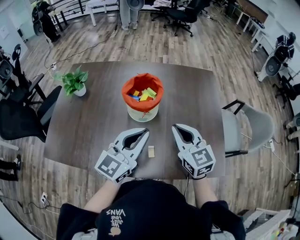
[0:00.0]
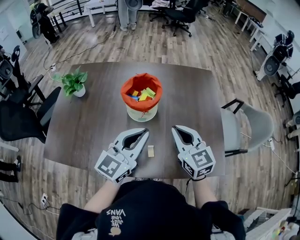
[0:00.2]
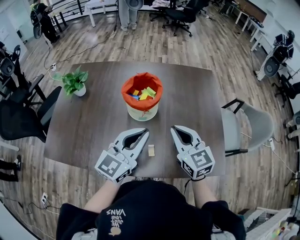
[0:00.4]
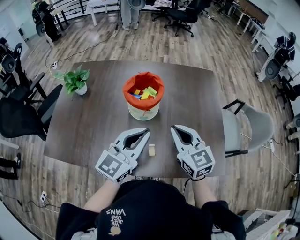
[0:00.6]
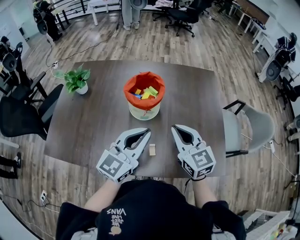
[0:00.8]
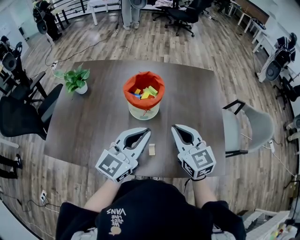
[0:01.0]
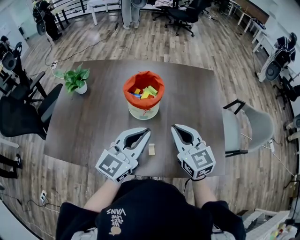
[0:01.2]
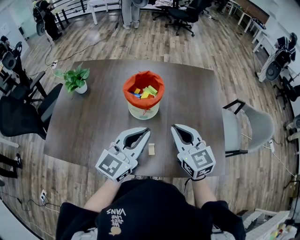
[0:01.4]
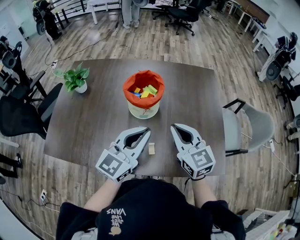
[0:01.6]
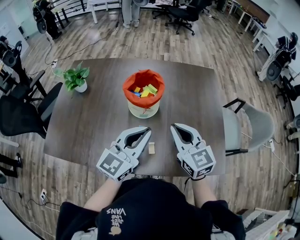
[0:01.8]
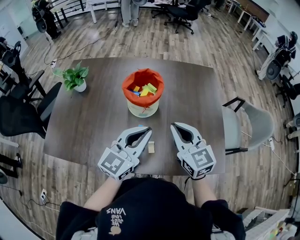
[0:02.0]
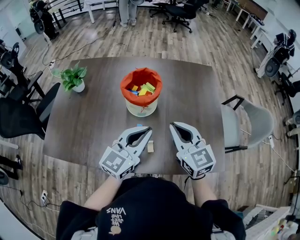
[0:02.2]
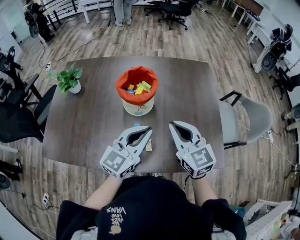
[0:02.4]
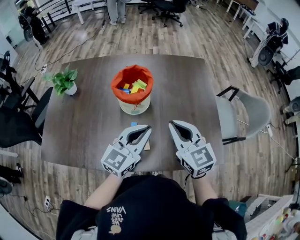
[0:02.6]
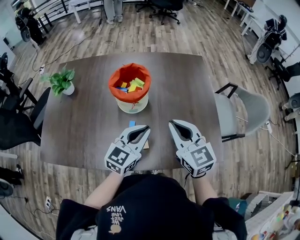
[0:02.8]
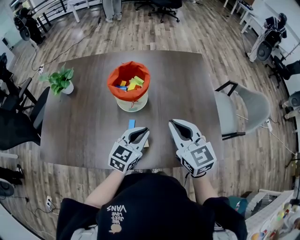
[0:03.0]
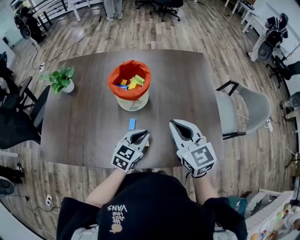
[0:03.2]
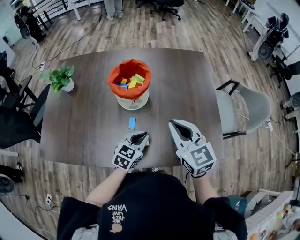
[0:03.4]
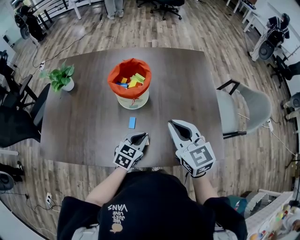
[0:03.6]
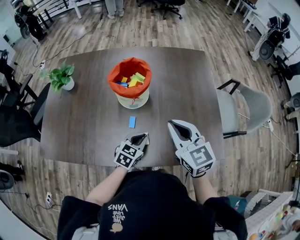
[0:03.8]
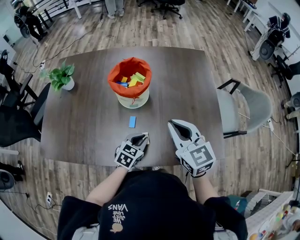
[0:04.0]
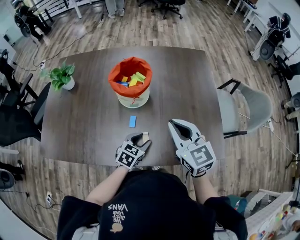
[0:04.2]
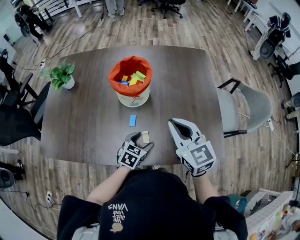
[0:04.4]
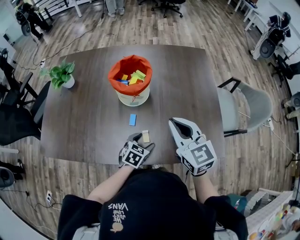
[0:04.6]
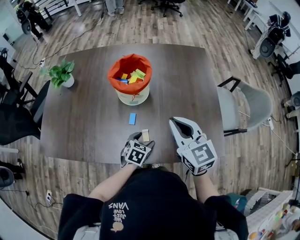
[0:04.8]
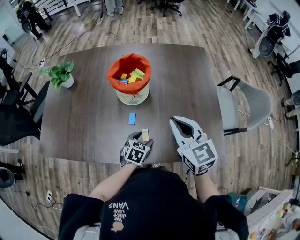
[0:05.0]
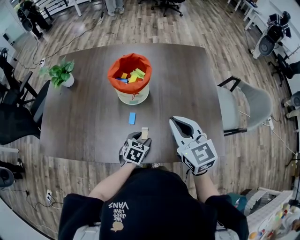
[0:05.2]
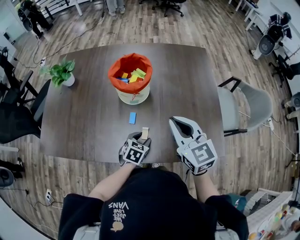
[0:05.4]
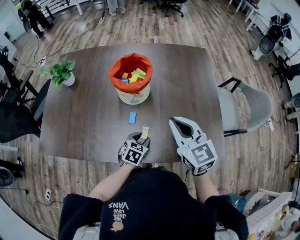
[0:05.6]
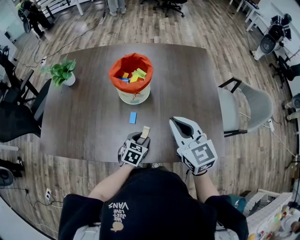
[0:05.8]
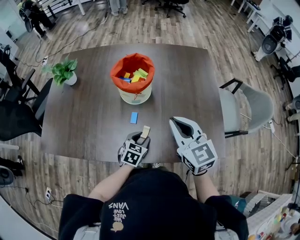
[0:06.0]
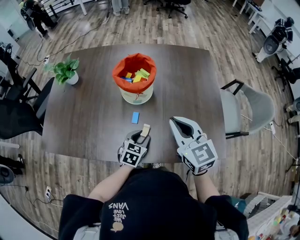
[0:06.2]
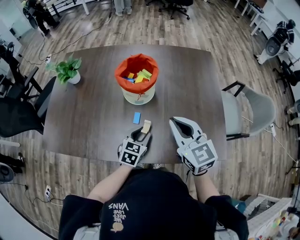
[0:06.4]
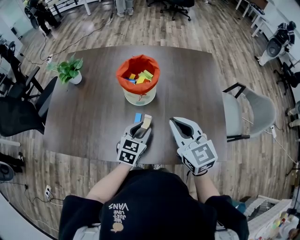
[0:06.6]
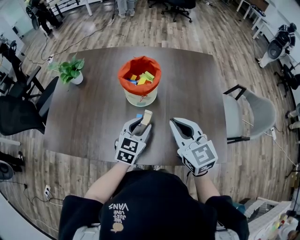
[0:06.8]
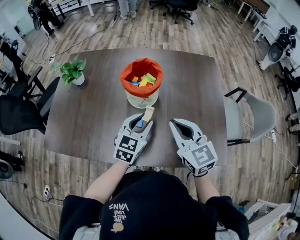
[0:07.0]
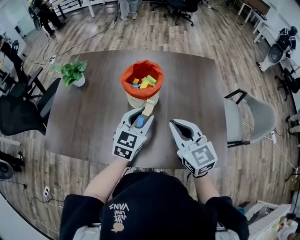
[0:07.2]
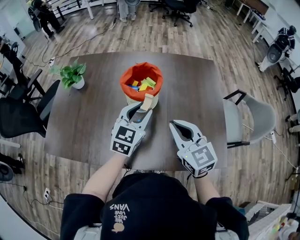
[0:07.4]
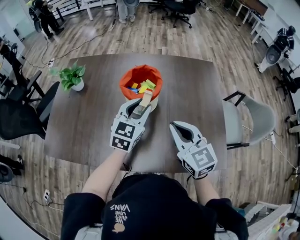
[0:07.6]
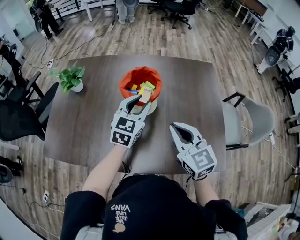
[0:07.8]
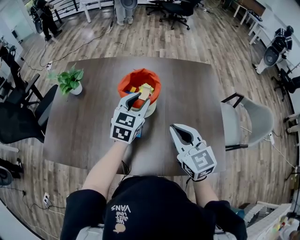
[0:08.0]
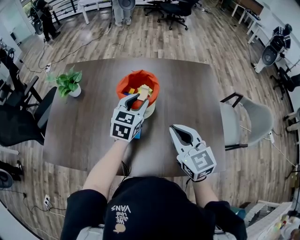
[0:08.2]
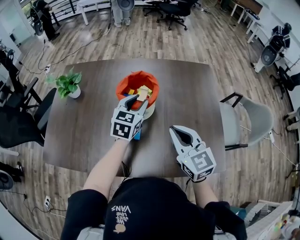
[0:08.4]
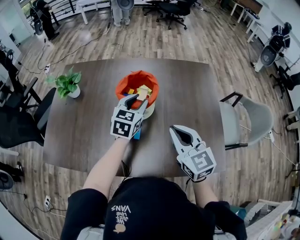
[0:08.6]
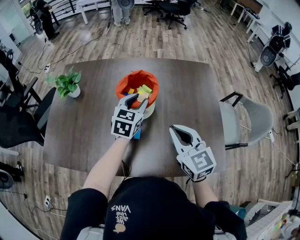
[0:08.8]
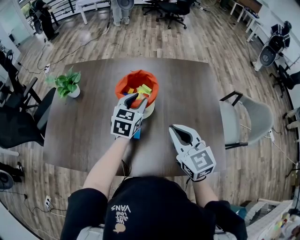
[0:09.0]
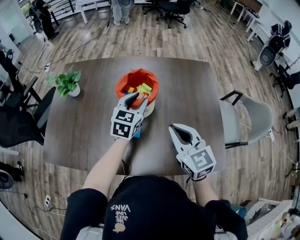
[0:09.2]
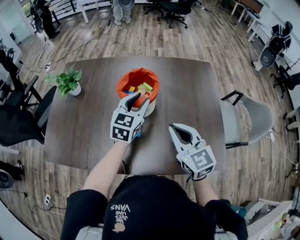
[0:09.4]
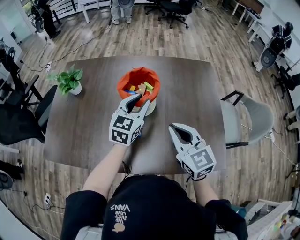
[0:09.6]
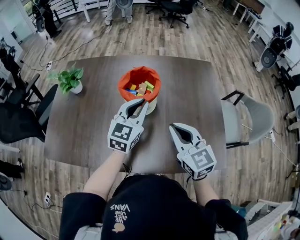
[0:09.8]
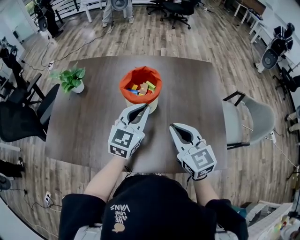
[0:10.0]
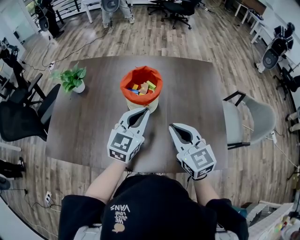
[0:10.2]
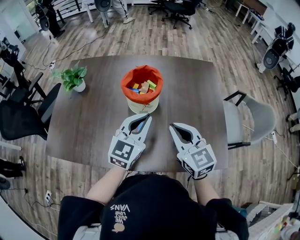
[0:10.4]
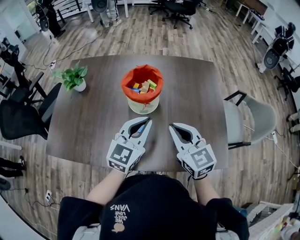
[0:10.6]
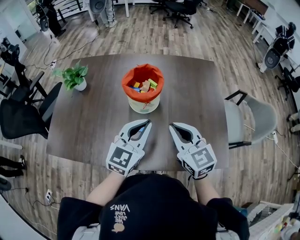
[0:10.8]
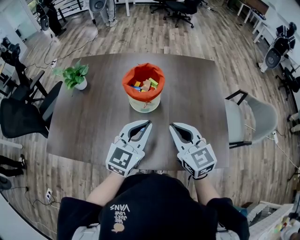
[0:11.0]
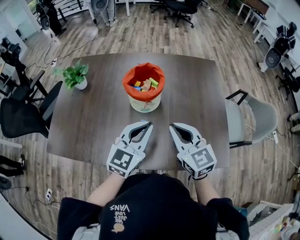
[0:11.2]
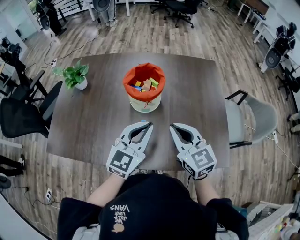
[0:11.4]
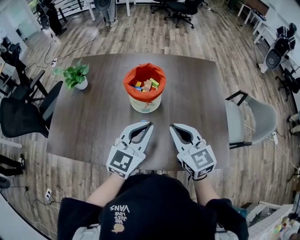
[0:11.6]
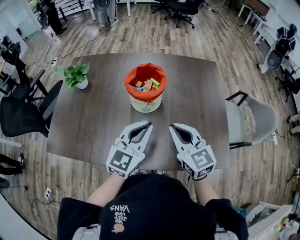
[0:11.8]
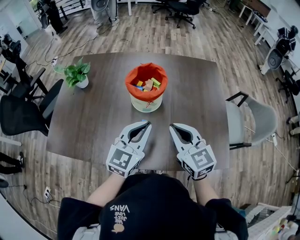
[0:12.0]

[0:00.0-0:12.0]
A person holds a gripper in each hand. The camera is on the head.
0:00.0 to 0:01.6: There are only small adjustments of the grippers.
0:01.6 to 0:03.0: The left gripper moves downward, some 15 cm, and rotates about 20 degrees.
0:03.0 to 0:04.4: The left gripper heads downward, covering approximately 15 cm, turns by some 30 degrees, and opens its fingers.
0:04.4 to 0:06.0: The left gripper closes up.
0:06.0 to 0:07.6: The left gripper is displaced upward and forward by about 25 cm, and changes its angle by about 30 degrees.
0:07.6 to 0:09.0: The left gripper heads forward, covering about 5 cm.
0:09.0 to 0:10.4: The left gripper goes approximately 15 cm backward and upward, and closes its fingers.
0:10.4 to 0:12.0: The grippers move only a little.

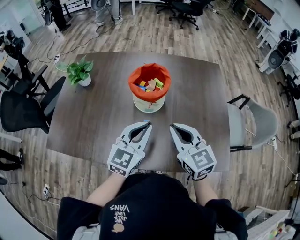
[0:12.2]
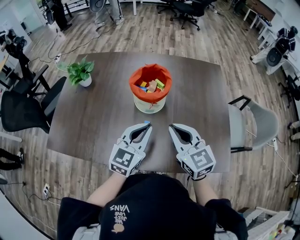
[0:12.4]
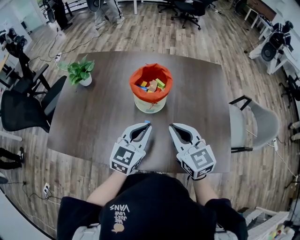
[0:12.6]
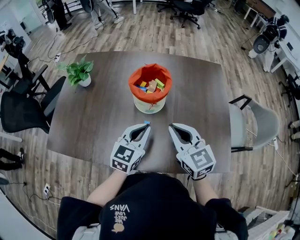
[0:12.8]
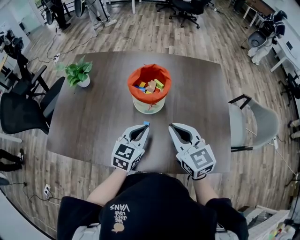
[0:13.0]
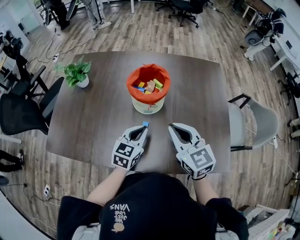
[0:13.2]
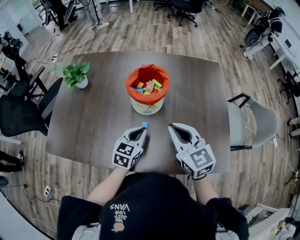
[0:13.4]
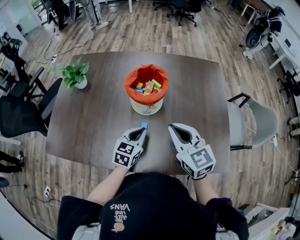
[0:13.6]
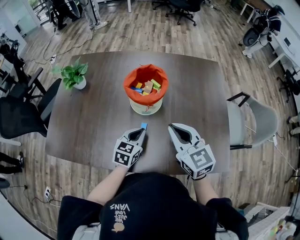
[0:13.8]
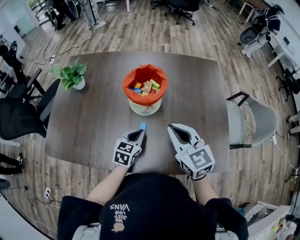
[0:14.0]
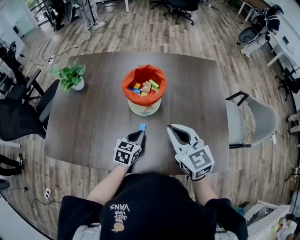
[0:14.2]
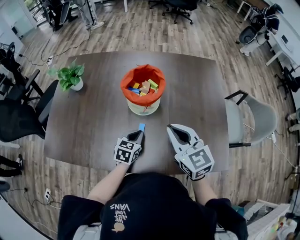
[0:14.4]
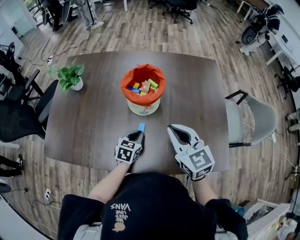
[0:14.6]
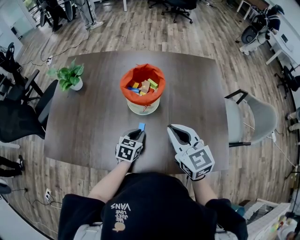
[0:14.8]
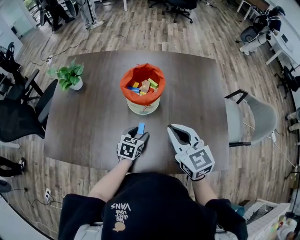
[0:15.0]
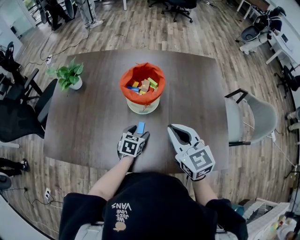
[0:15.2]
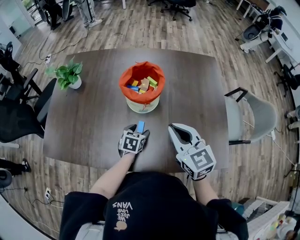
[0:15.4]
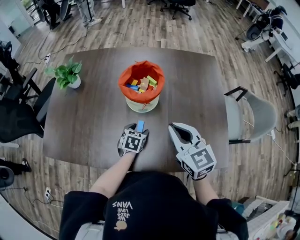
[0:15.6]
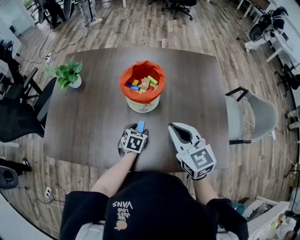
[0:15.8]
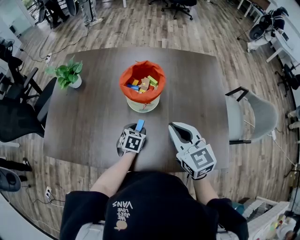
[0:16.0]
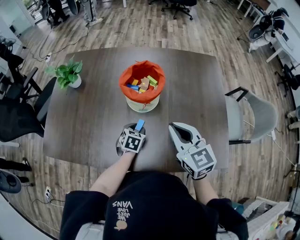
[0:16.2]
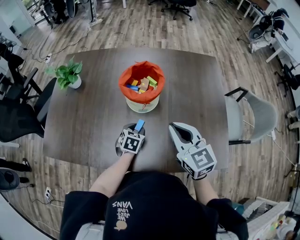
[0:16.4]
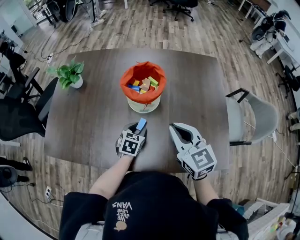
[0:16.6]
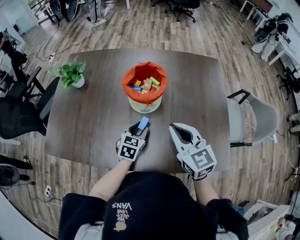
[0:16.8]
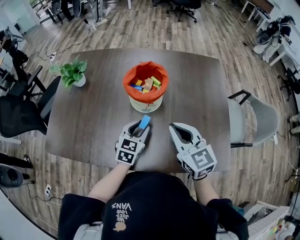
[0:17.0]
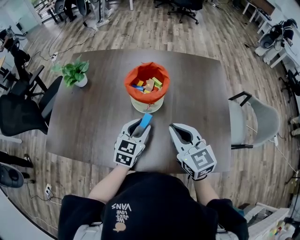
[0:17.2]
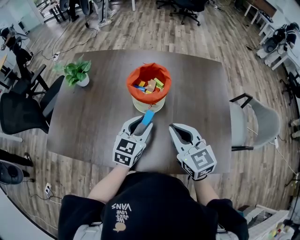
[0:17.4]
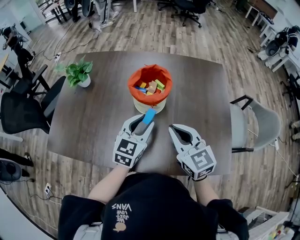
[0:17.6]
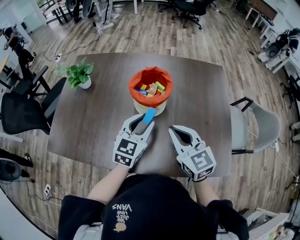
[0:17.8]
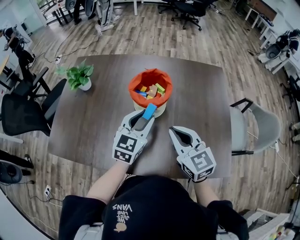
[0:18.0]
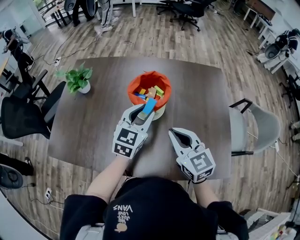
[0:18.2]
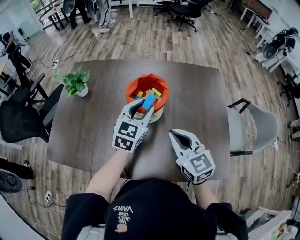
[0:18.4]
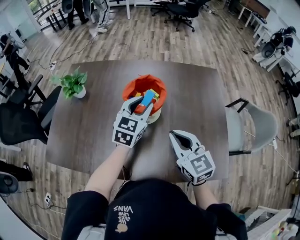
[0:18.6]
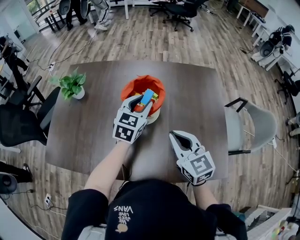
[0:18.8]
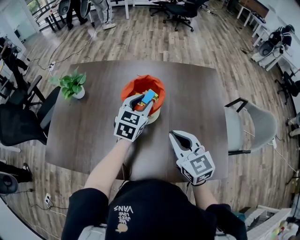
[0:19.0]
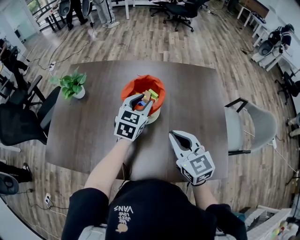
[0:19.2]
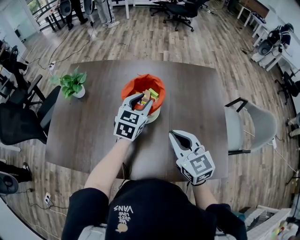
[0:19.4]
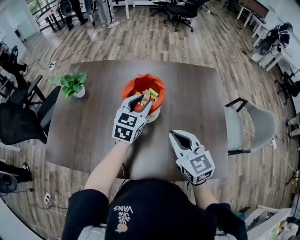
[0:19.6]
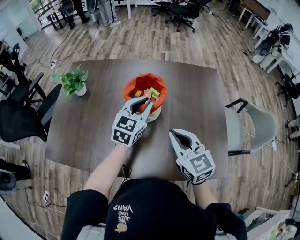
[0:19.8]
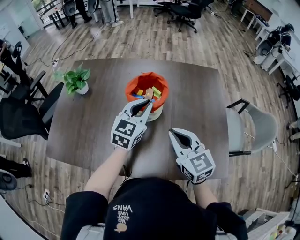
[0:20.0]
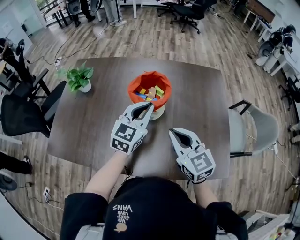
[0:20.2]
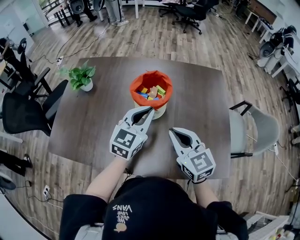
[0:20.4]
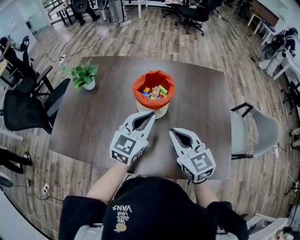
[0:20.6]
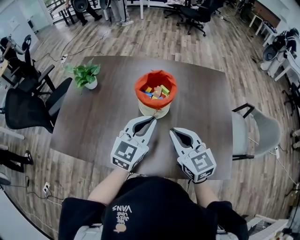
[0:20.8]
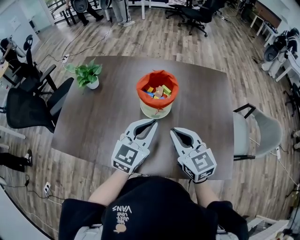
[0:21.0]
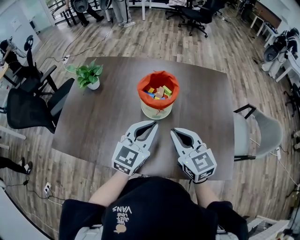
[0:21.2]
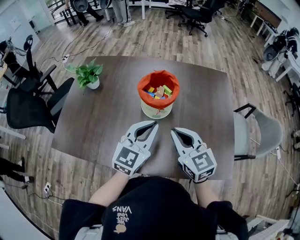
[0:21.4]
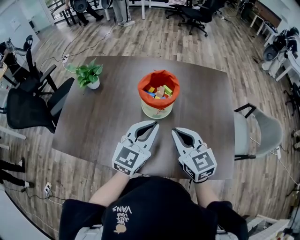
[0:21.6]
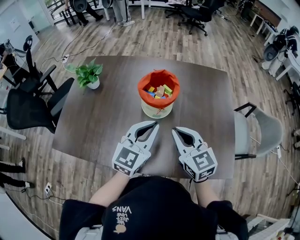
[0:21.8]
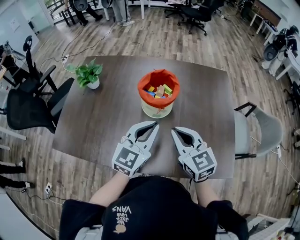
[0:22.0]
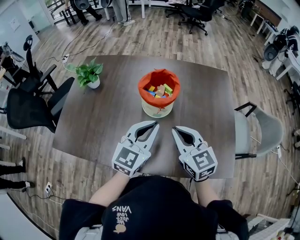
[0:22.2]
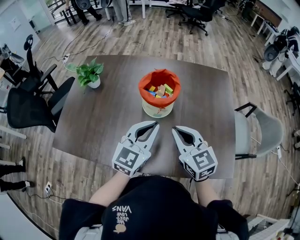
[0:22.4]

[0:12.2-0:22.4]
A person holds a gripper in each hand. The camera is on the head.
0:12.2 to 0:13.6: The left gripper goes about 15 cm downward, and turns by approximately 20 degrees.
0:13.6 to 0:15.2: The left gripper shifts approximately 10 cm downward, and opens.
0:15.2 to 0:16.6: The left gripper closes.
0:16.6 to 0:18.0: The left gripper goes about 20 cm upward, and changes its angle by about 30 degrees.
0:18.0 to 0:19.4: The left gripper is displaced forward by some 10 cm.
0:19.4 to 0:21.0: The left gripper shifts roughly 15 cm backward, and closes its fingers.
0:21.0 to 0:22.4: The two grippers keep their place.

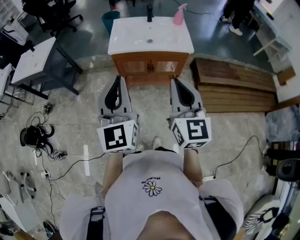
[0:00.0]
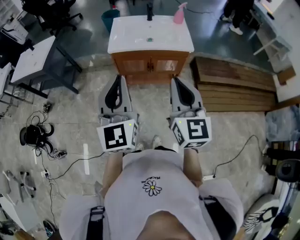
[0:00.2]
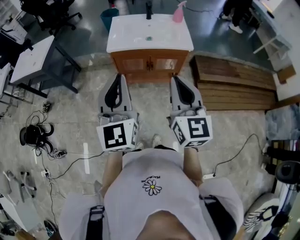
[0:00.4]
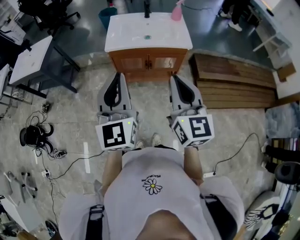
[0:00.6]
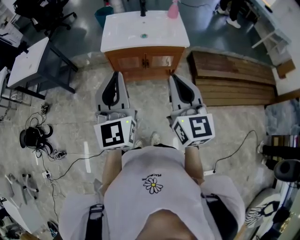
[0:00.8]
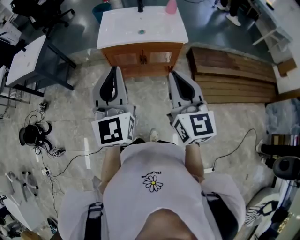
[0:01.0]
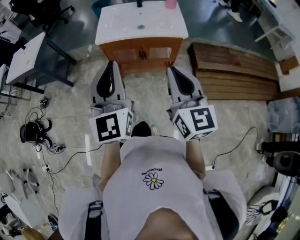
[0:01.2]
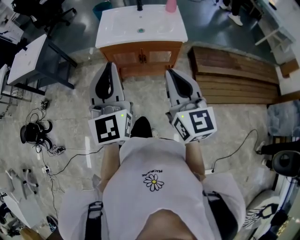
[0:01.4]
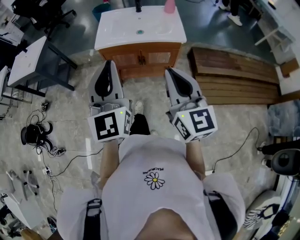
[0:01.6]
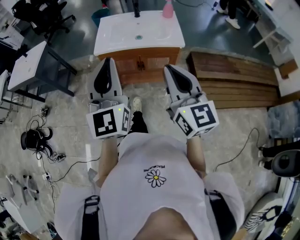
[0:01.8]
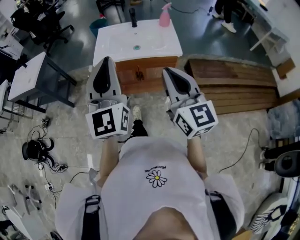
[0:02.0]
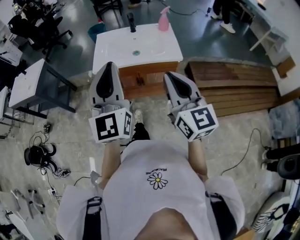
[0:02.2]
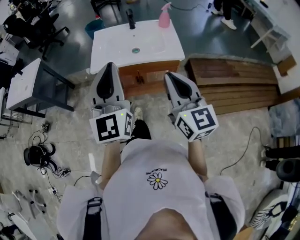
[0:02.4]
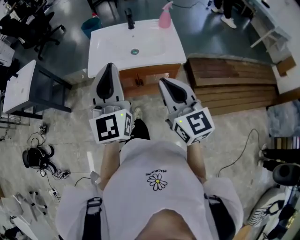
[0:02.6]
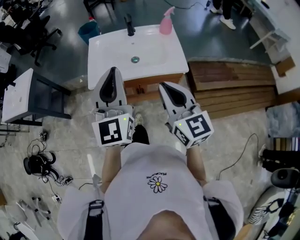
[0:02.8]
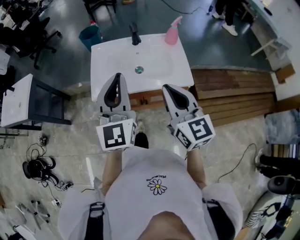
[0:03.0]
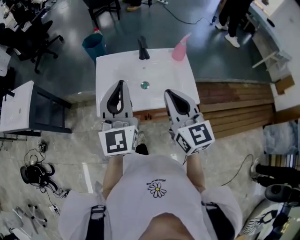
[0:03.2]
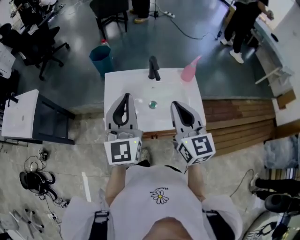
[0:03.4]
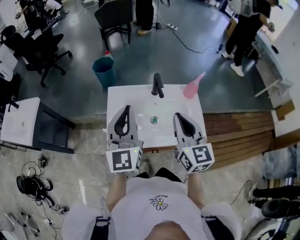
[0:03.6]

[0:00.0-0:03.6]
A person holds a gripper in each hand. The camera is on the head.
0:00.0 to 0:01.8: The right gripper is displaced to the right by some 5 cm; the left gripper travels to the right and forward by some 10 cm.
0:01.8 to 0:03.6: The two grippers travel together, forward, roughly 40 cm.
